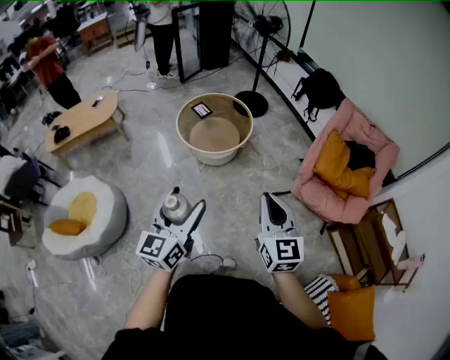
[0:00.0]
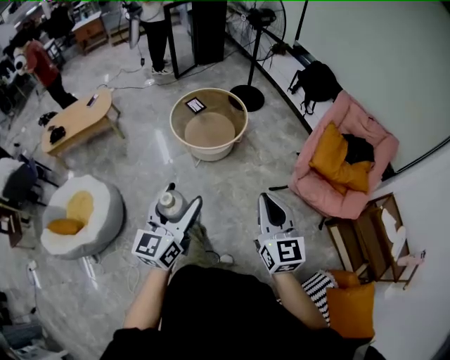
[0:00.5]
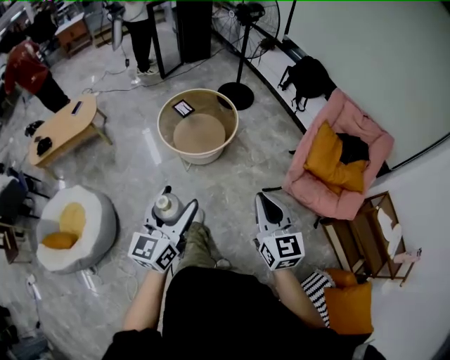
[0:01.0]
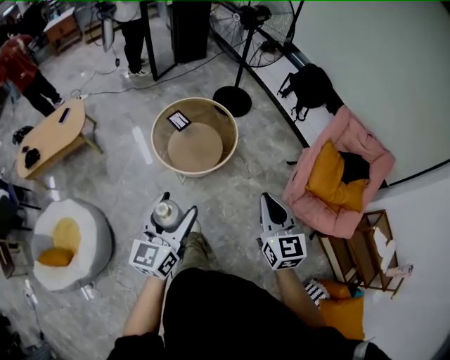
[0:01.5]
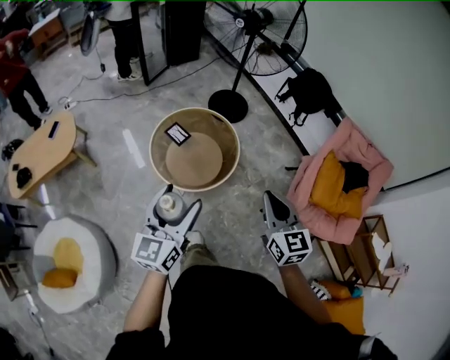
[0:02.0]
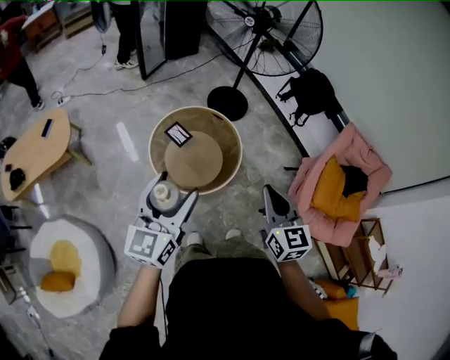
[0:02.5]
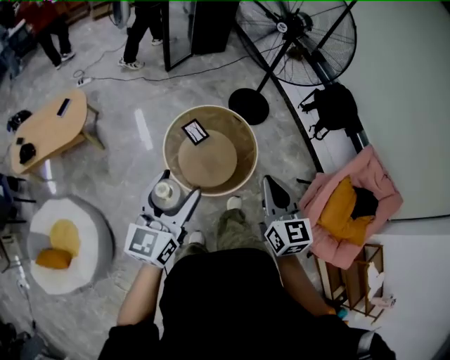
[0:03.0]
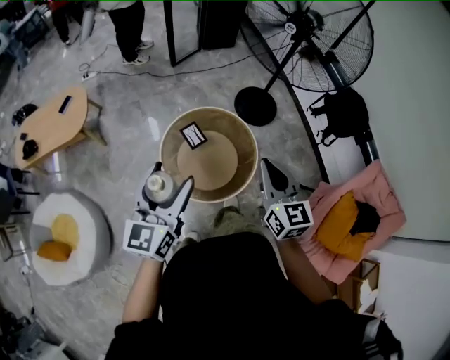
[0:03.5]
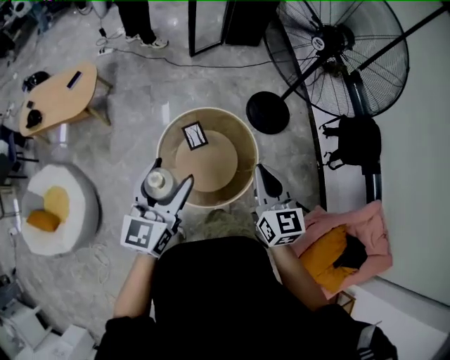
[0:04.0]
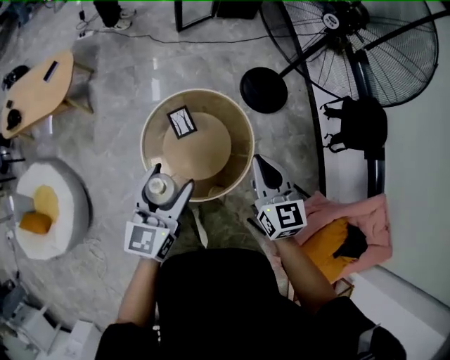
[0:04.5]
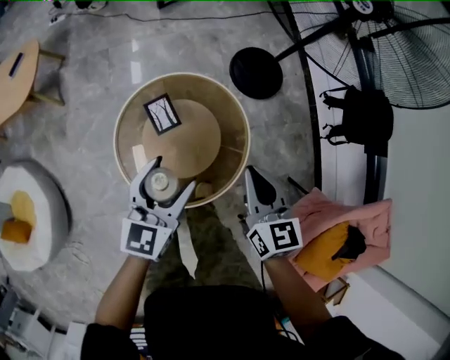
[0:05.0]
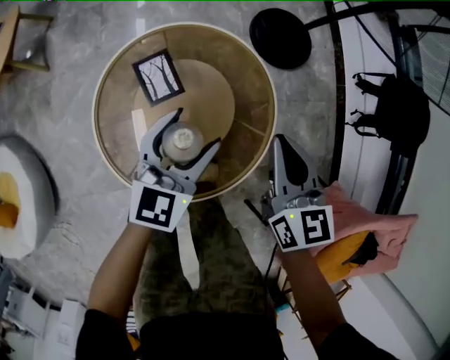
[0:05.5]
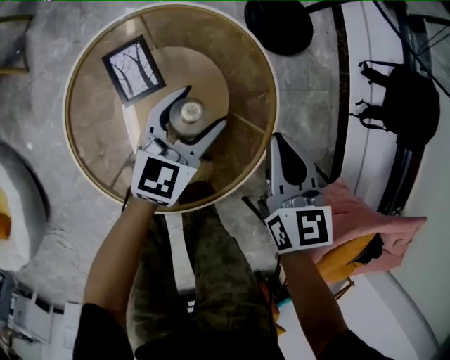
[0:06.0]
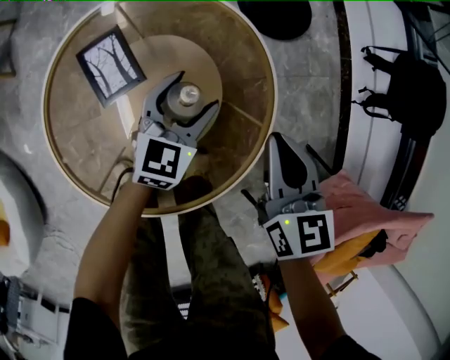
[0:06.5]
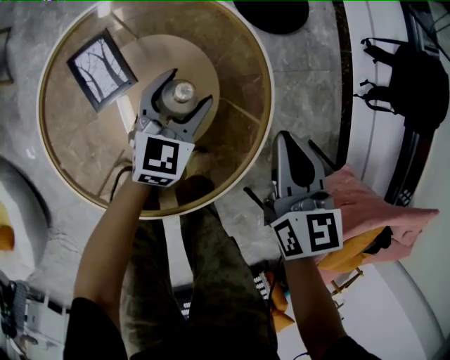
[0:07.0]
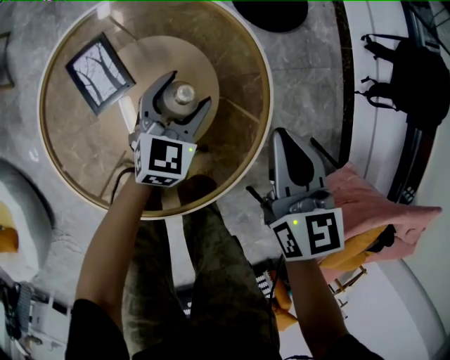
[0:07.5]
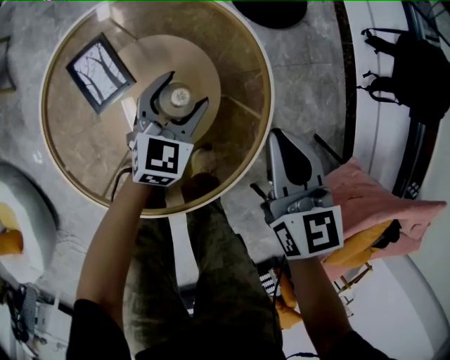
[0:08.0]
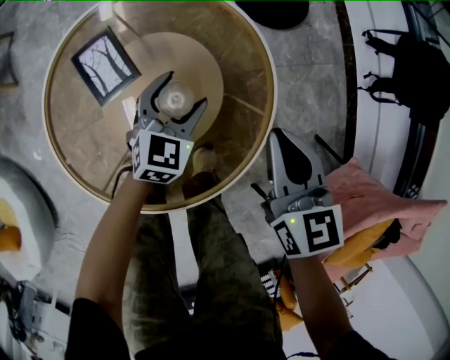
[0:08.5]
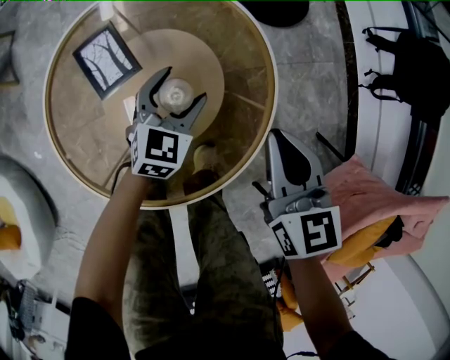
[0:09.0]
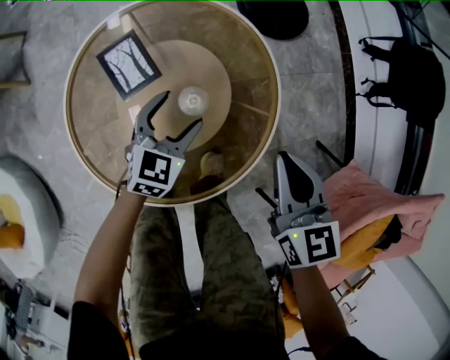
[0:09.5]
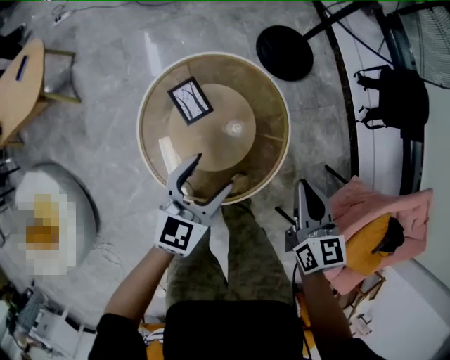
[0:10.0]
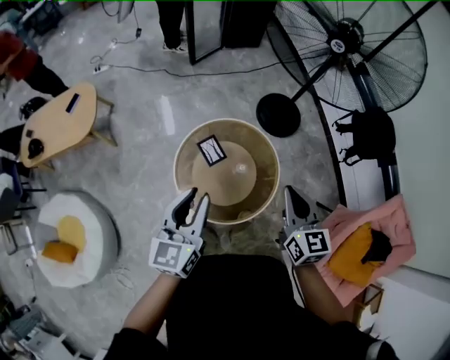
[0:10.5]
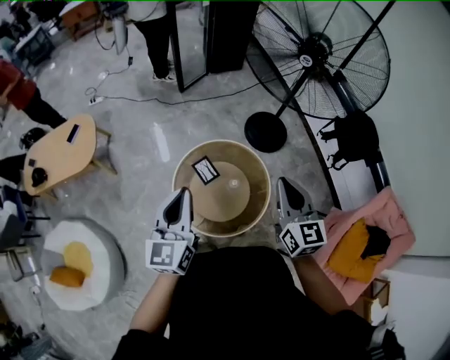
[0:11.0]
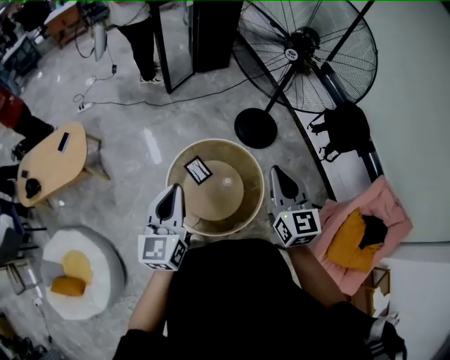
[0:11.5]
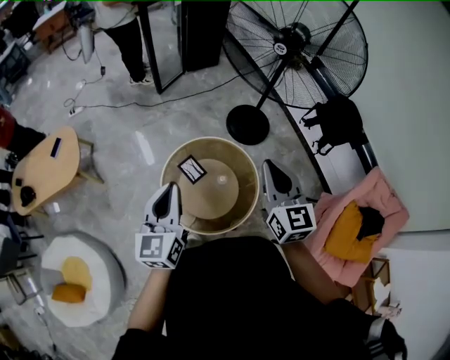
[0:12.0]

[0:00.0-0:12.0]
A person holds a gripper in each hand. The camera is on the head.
0:00.0 to 0:02.0: The pair of grippers is taken forward, roughly 40 cm.
0:02.0 to 0:04.0: The right gripper shifts by some 40 cm, and swivels about 20 degrees. The left gripper ends up some 30 cm from where it was, and rotates about 20 degrees.
0:04.0 to 0:06.0: Both grippers move downward, roughly 50 cm. The right gripper rotates approximately 20 degrees, while the left gripper rotates approximately 20 degrees.
0:06.0 to 0:08.0: The right gripper ends up roughly 5 cm from where it was. Meanwhile the left gripper heads downward, covering roughly 10 cm.
0:08.0 to 0:10.0: The grippers both shift upward and backward by roughly 30 cm.
0:10.0 to 0:12.0: Both grippers travel together upward, some 40 cm. The right gripper rotates some 20 degrees; the left gripper swivels about 20 degrees, and closes.

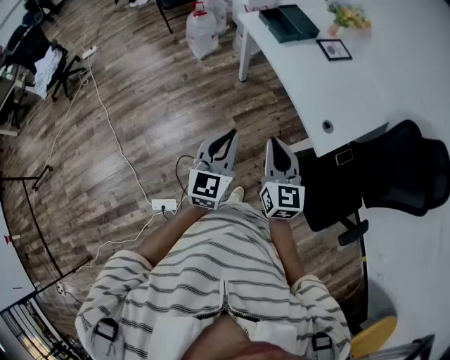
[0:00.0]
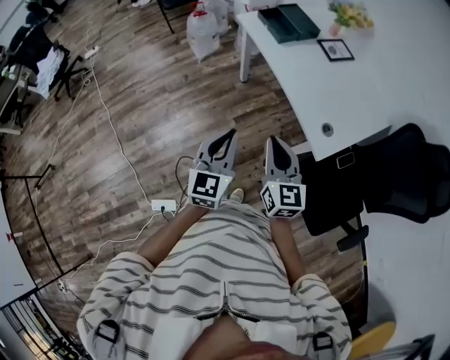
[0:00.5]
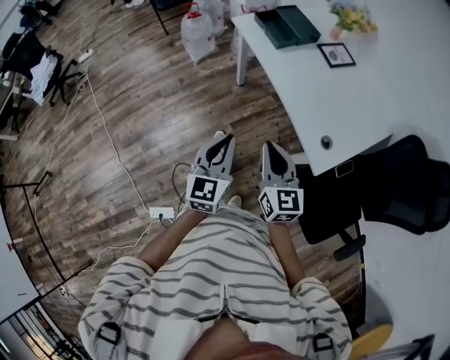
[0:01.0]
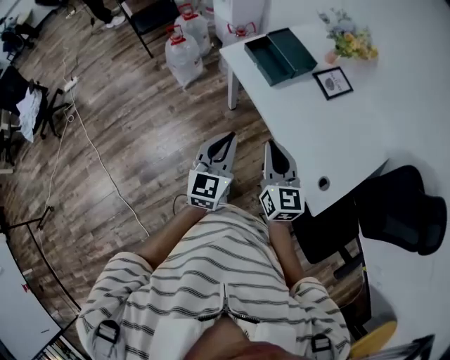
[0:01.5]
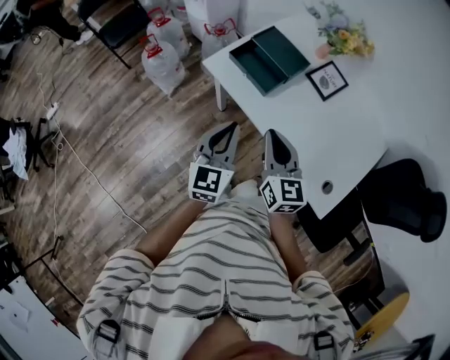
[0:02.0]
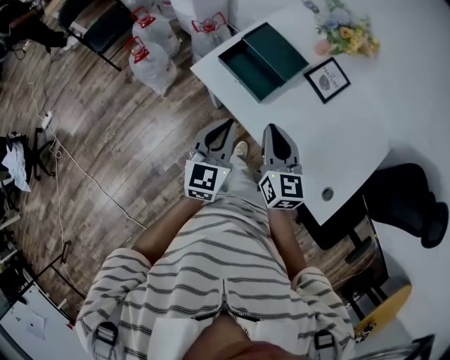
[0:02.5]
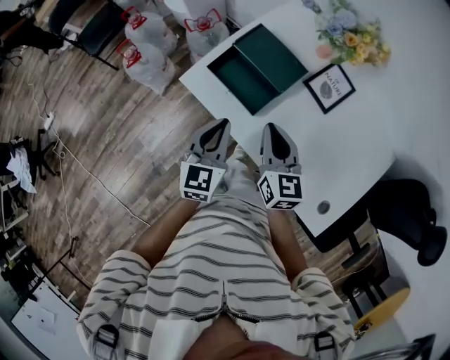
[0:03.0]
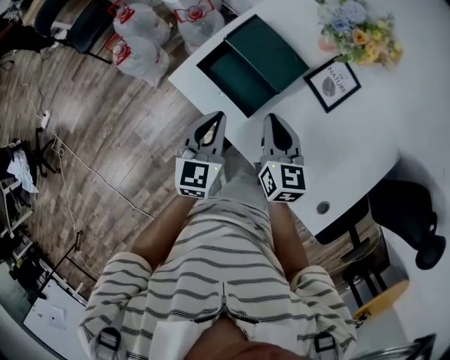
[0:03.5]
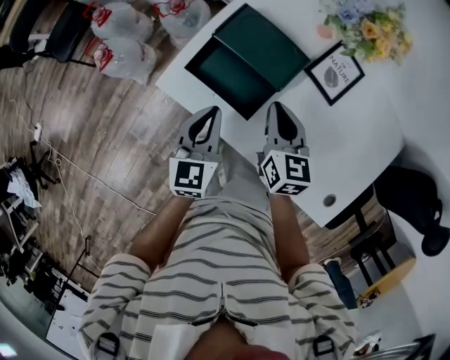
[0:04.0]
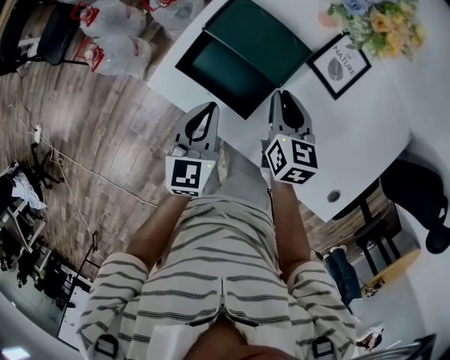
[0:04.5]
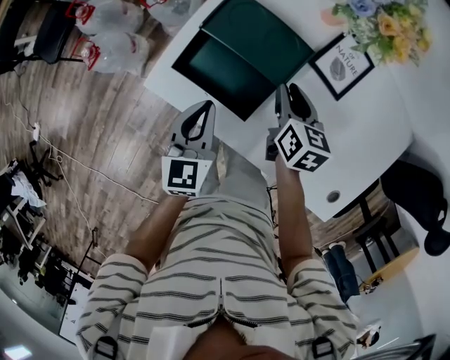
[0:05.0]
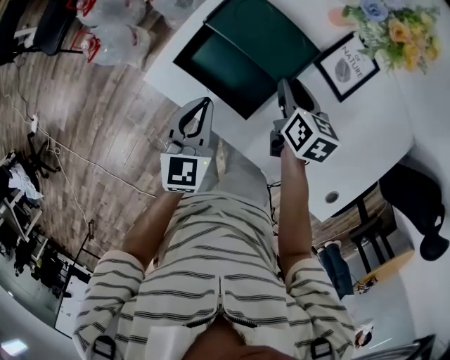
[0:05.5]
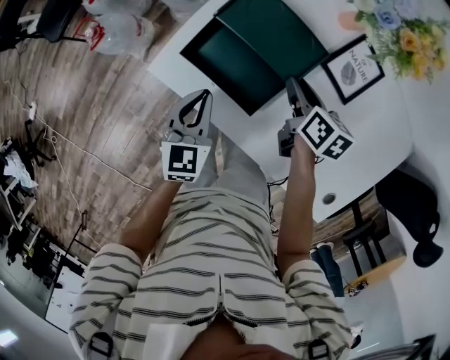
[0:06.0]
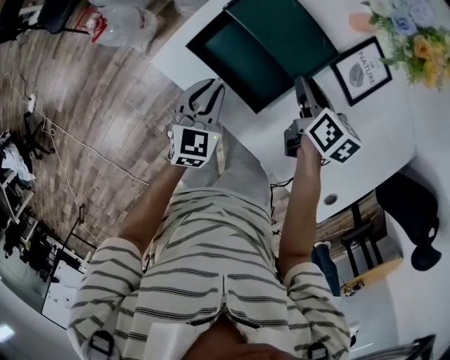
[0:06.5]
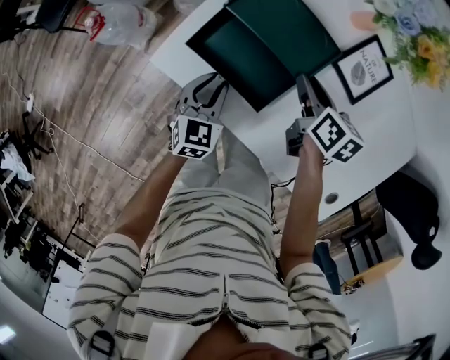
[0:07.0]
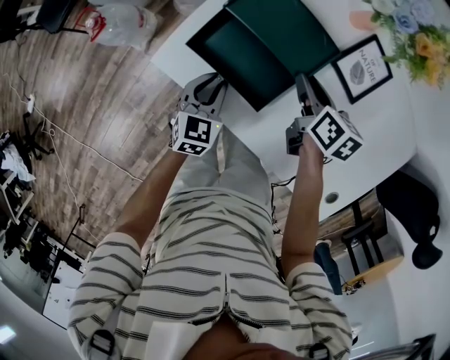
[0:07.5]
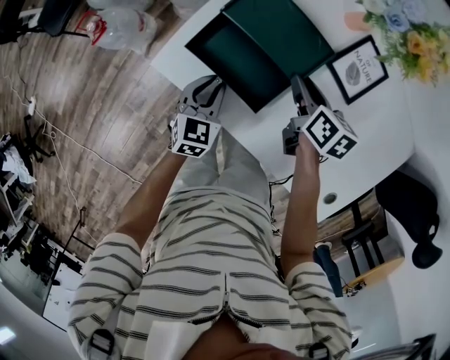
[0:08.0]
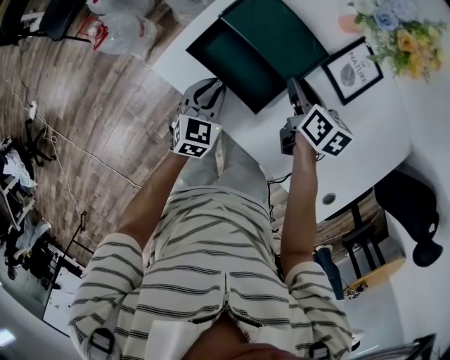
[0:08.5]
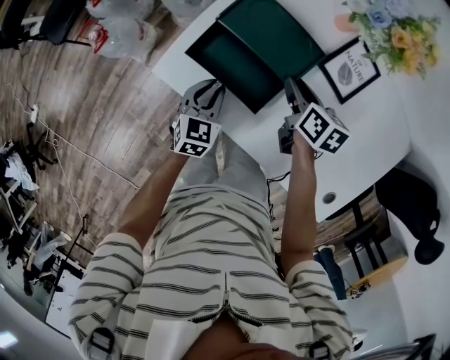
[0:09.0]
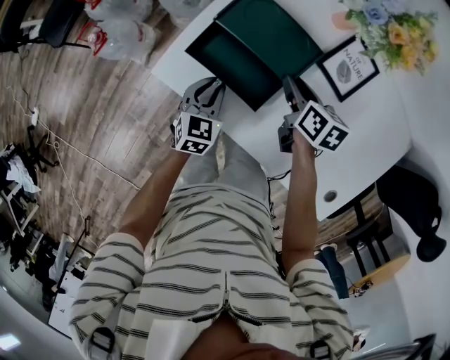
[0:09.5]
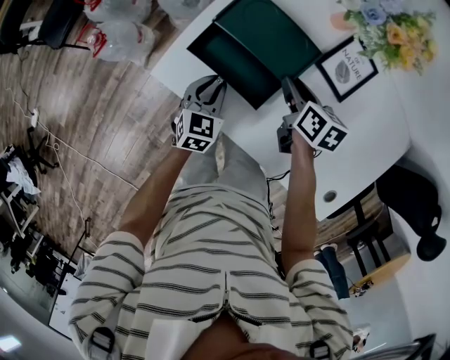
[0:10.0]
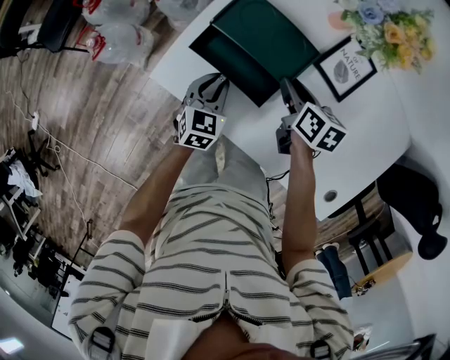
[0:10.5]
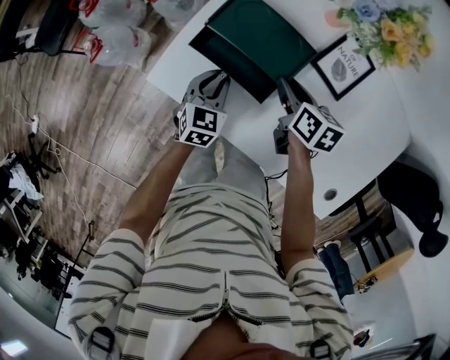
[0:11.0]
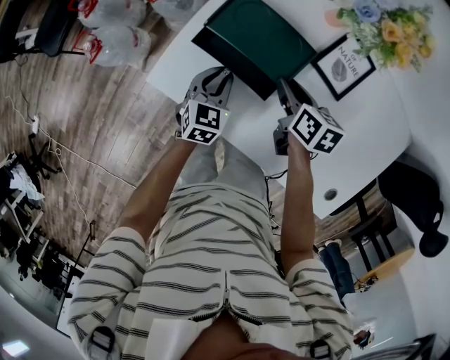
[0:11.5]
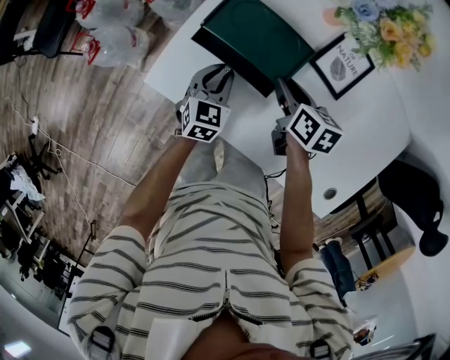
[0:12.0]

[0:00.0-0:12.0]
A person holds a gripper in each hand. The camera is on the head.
0:00.0 to 0:02.0: The pair of grippers is taken forward, approximately 40 cm.
0:02.0 to 0:04.0: Both grippers travel together forward and downward, approximately 30 cm. The right gripper rotates some 20 degrees.
0:04.0 to 0:06.0: The right gripper travels downward and forward by roughly 10 cm, changes its angle by roughly 30 degrees, and opens its fingers. Meanwhile the left gripper shifts about 5 cm downward.
0:06.0 to 0:08.0: The left gripper moves downward, roughly 5 cm.
0:08.0 to 0:10.0: The grippers stay close to where they were, moving slightly.
0:10.0 to 0:12.0: The left gripper changes place by roughly 5 cm.

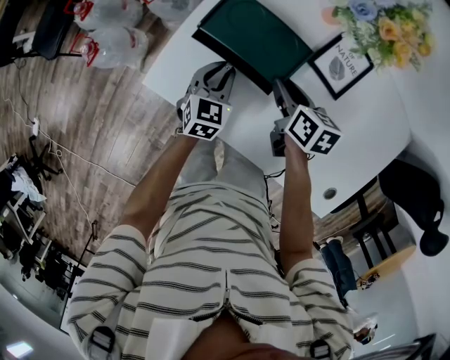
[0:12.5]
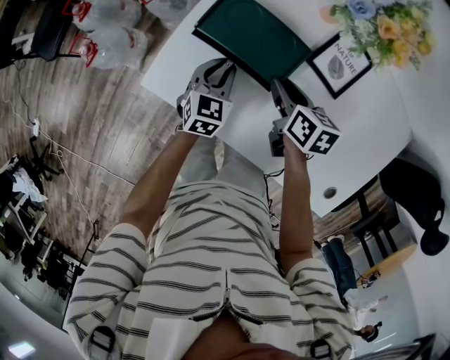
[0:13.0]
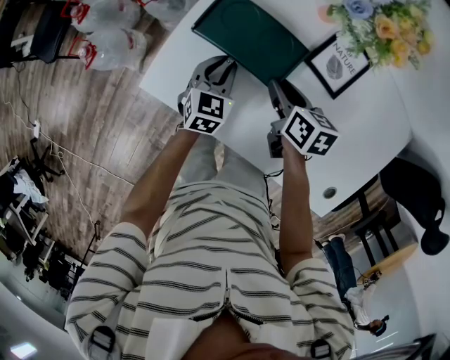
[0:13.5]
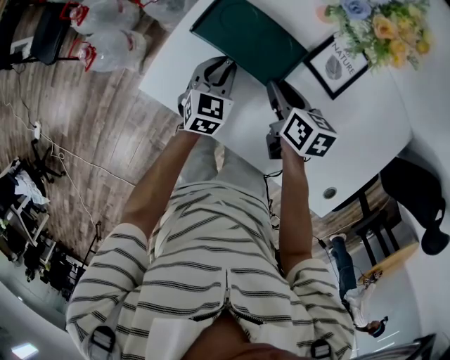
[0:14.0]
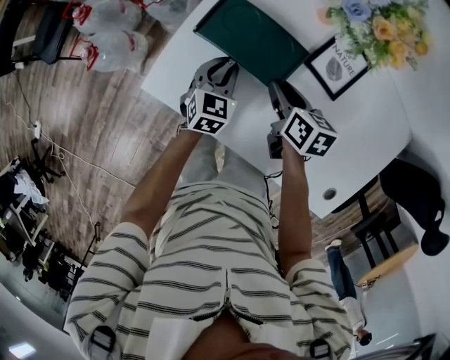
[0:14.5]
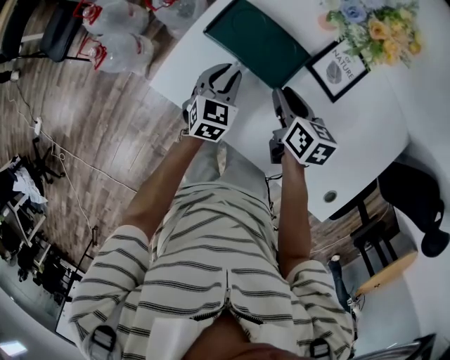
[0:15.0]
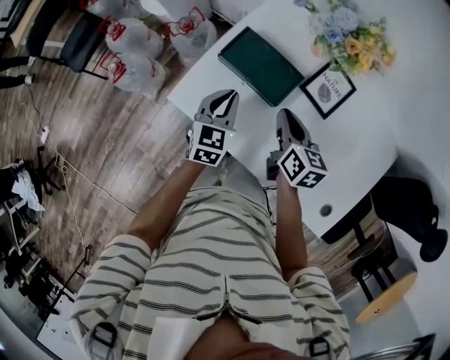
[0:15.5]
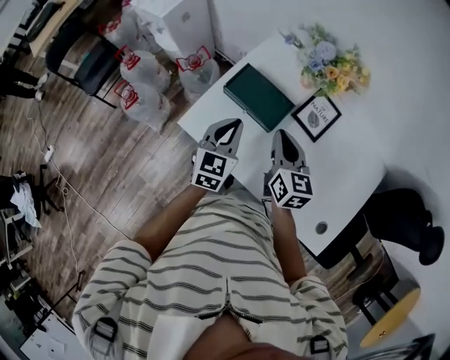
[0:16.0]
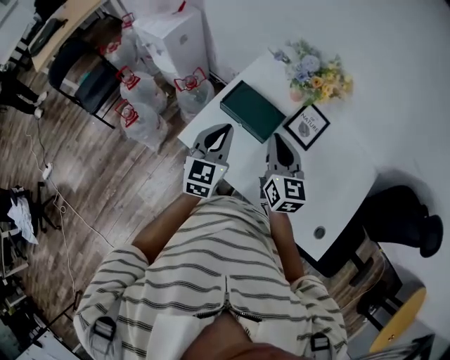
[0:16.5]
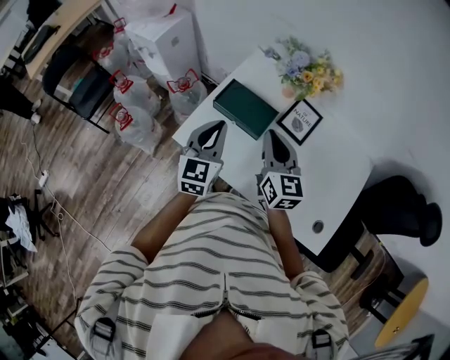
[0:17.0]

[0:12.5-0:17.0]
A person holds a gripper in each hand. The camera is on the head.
0:12.5 to 0:14.5: The grippers move only a little.
0:14.5 to 0:17.0: Both grippers travel together upward, some 30 cm. The left gripper swivels some 30 degrees. Meanwhile the right gripper angles its fingers upward, by approximately 30 degrees, and closes.
